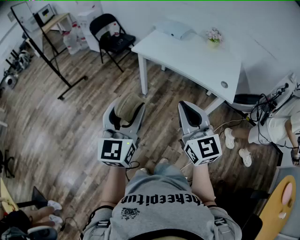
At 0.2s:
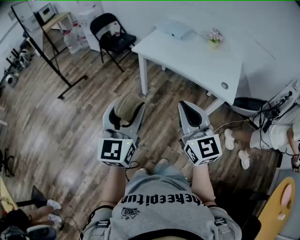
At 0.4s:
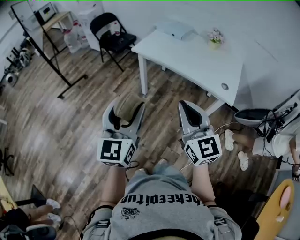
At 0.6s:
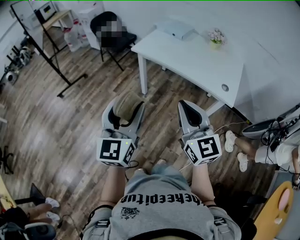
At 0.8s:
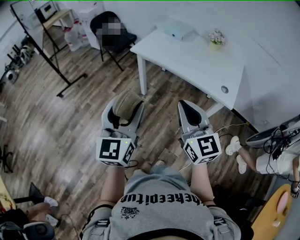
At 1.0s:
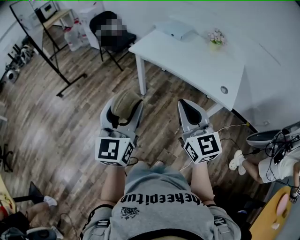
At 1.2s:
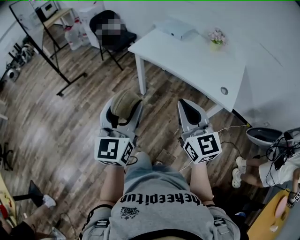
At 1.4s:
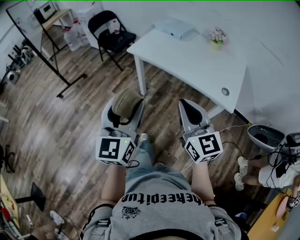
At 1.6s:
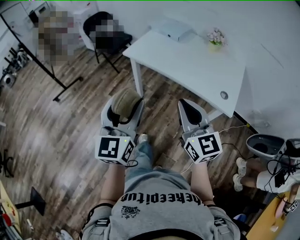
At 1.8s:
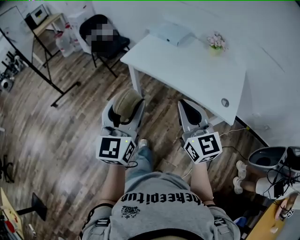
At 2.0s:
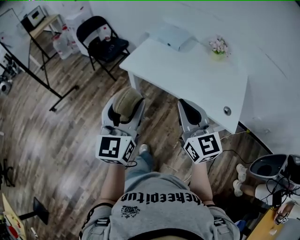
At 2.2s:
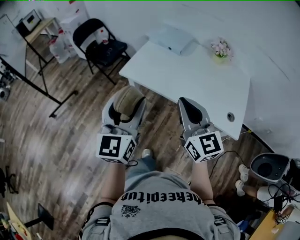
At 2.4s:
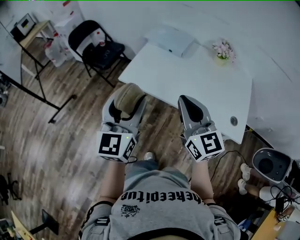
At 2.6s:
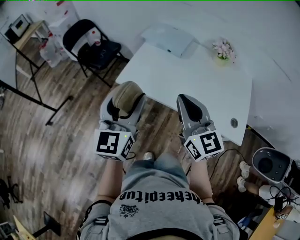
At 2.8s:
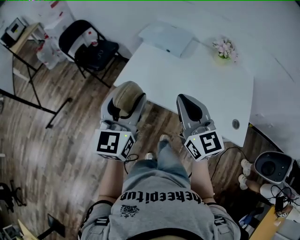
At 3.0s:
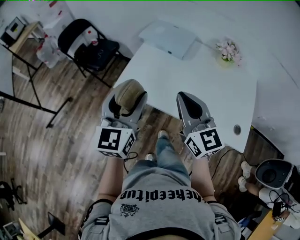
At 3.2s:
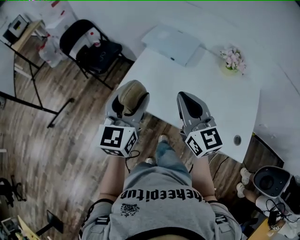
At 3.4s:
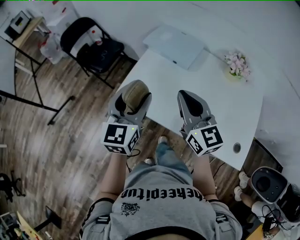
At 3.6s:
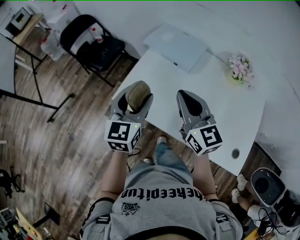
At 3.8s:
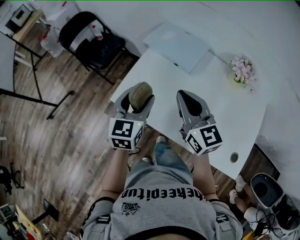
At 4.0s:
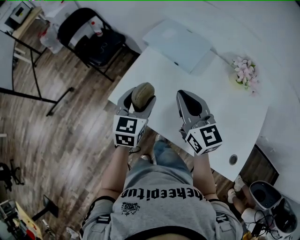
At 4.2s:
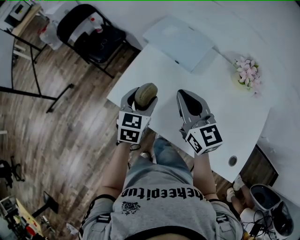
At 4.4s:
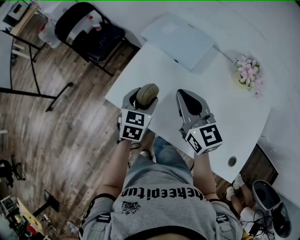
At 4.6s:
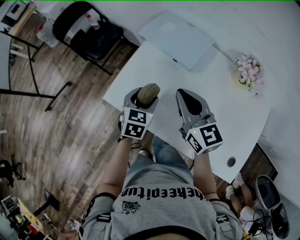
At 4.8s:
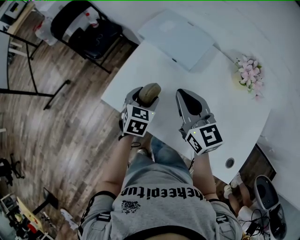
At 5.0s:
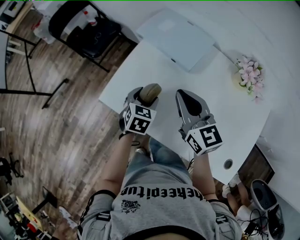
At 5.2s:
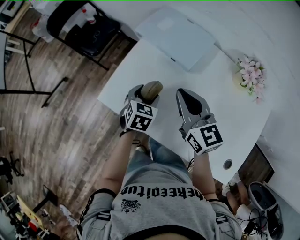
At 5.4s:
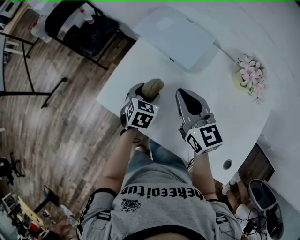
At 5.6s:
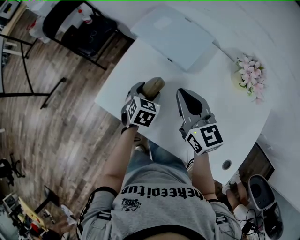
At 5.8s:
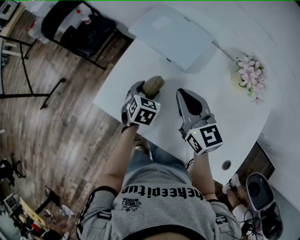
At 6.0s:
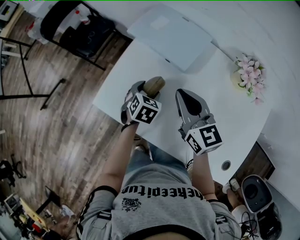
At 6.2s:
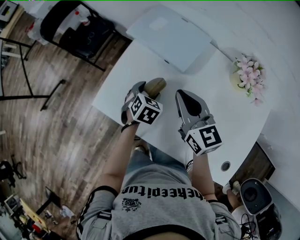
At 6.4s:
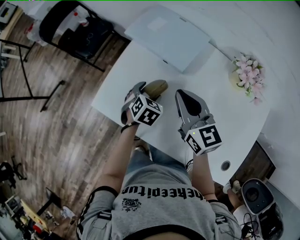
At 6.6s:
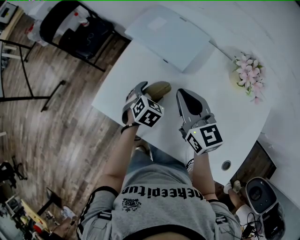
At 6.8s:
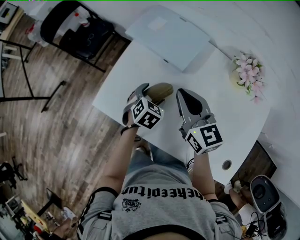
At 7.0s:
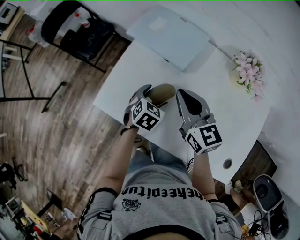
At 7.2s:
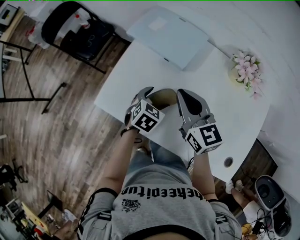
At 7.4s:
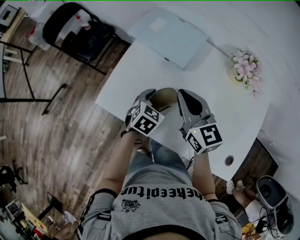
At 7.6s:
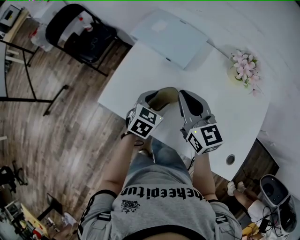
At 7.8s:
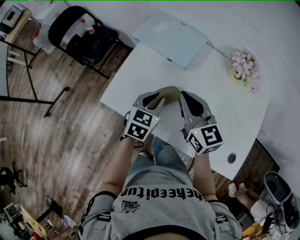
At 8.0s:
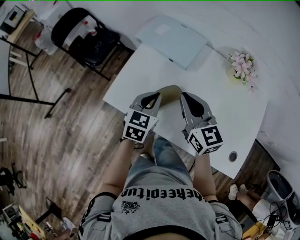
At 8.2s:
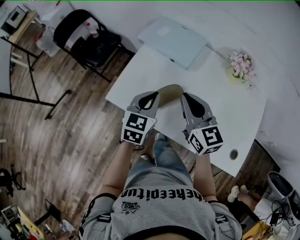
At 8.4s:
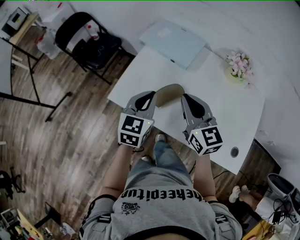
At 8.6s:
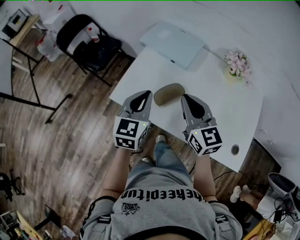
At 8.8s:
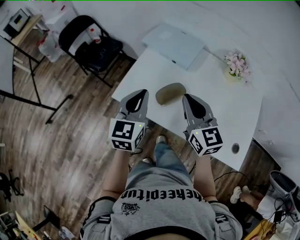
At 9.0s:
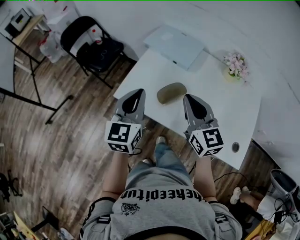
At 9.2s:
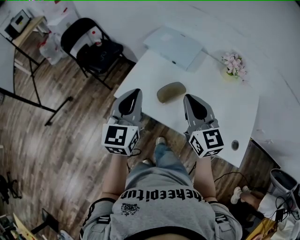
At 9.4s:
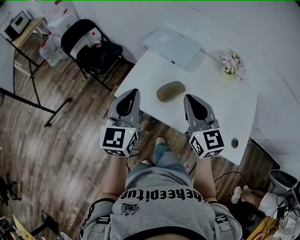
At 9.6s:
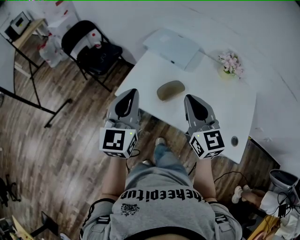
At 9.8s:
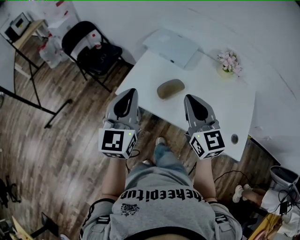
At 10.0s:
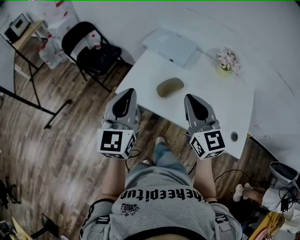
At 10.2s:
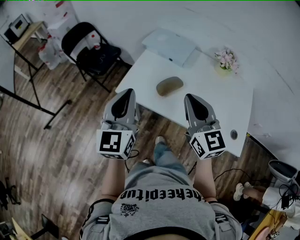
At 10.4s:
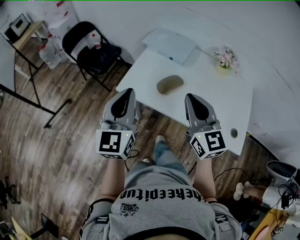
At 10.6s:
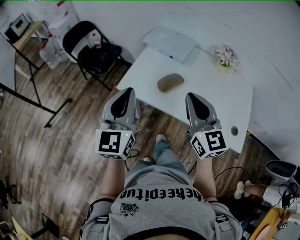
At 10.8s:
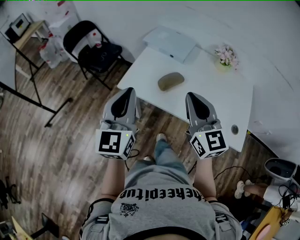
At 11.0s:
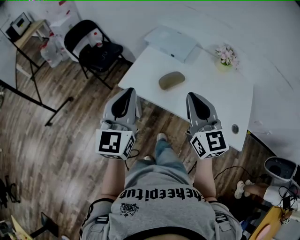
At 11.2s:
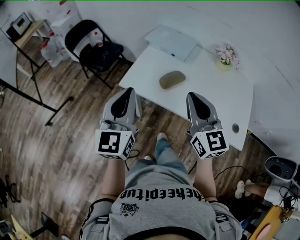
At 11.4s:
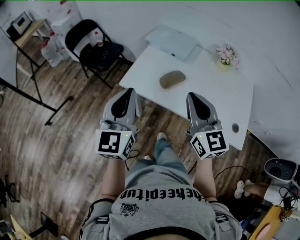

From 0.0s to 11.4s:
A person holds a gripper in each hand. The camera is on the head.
From 0.0s to 1.4s: Both grippers move forward and to the right, roughly 10 cm.
From 1.4s to 2.8s: The two grippers go about 35 cm forward.
From 2.8s to 4.2s: The right gripper heads forward, covering some 20 cm. The left gripper shifts approximately 30 cm forward, downward and to the right, and angles its fingers downward, by approximately 30 degrees.
From 4.2s to 5.6s: The left gripper shifts about 15 cm downward, to the right and forward; the right gripper moves approximately 10 cm.
From 5.6s to 7.2s: The left gripper moves to the right, roughly 5 cm.
From 7.2s to 8.6s: The right gripper shifts approximately 10 cm backward. Meanwhile the left gripper goes roughly 25 cm upward, to the left and backward, angles its fingers upward, by roughly 30 degrees, and closes.
From 8.6s to 10.0s: The right gripper shifts roughly 10 cm backward and upward. The left gripper shifts approximately 15 cm backward, upward and to the left.
From 10.0s to 11.4s: The two grippers go some 5 cm backward.

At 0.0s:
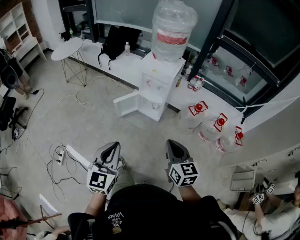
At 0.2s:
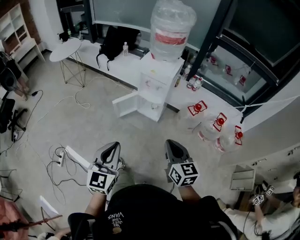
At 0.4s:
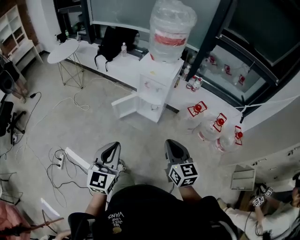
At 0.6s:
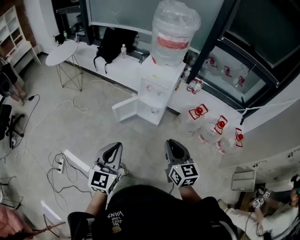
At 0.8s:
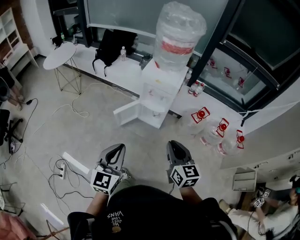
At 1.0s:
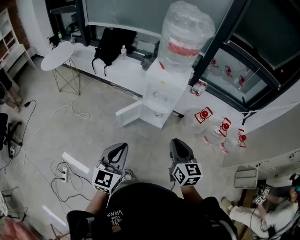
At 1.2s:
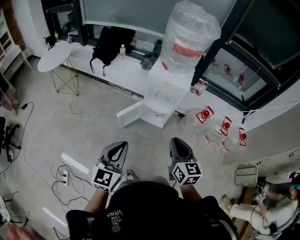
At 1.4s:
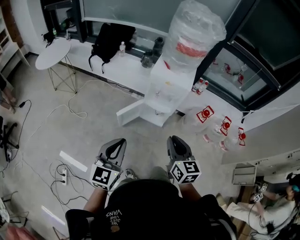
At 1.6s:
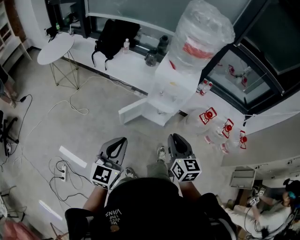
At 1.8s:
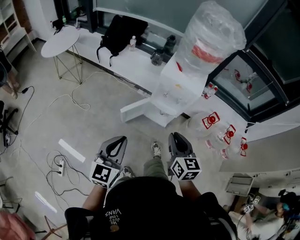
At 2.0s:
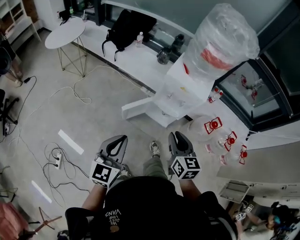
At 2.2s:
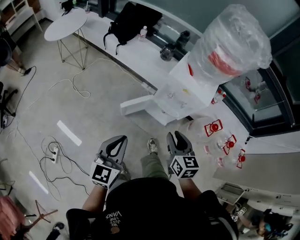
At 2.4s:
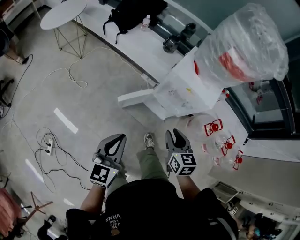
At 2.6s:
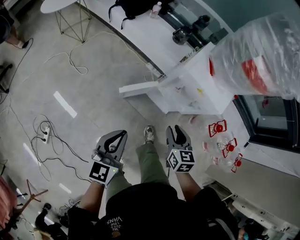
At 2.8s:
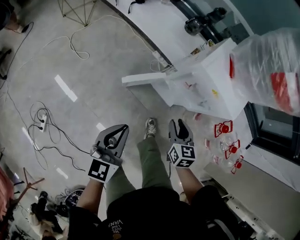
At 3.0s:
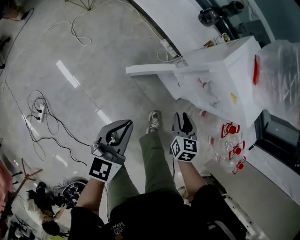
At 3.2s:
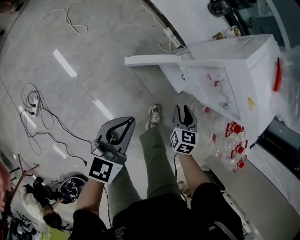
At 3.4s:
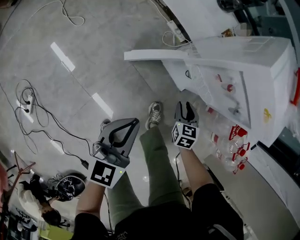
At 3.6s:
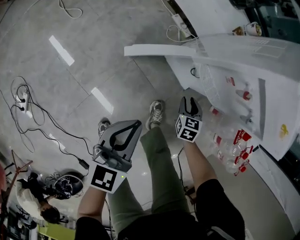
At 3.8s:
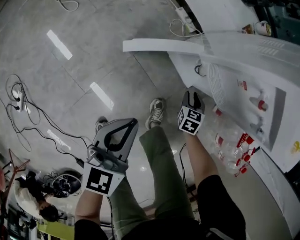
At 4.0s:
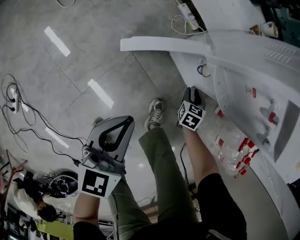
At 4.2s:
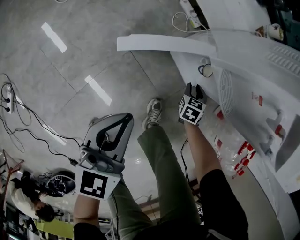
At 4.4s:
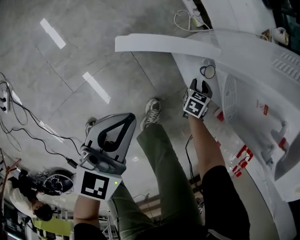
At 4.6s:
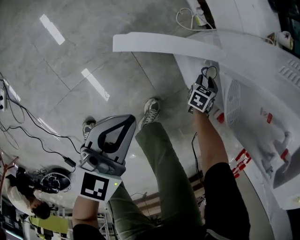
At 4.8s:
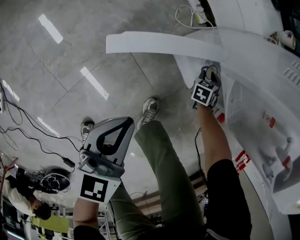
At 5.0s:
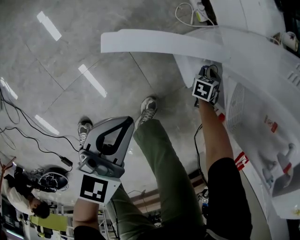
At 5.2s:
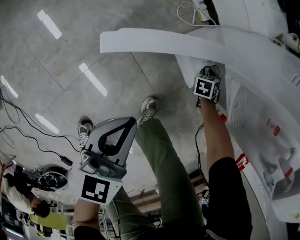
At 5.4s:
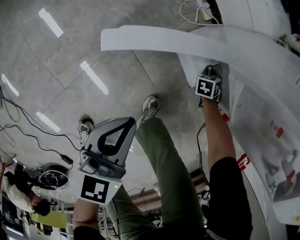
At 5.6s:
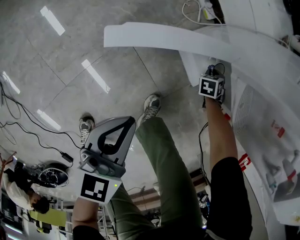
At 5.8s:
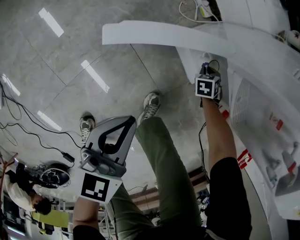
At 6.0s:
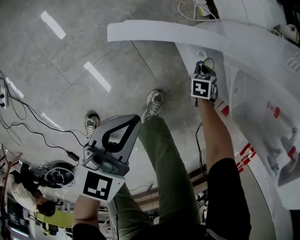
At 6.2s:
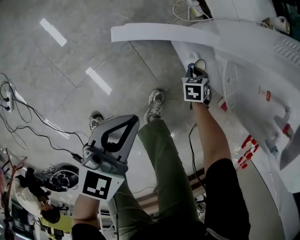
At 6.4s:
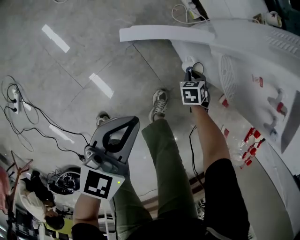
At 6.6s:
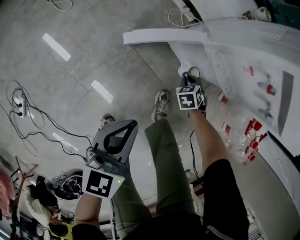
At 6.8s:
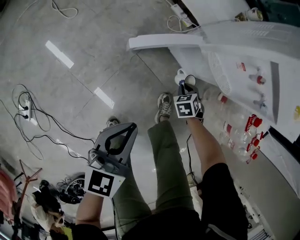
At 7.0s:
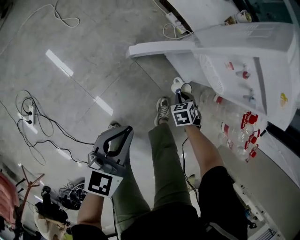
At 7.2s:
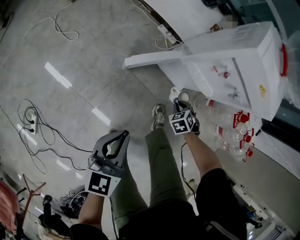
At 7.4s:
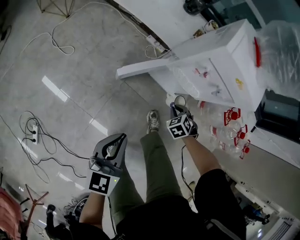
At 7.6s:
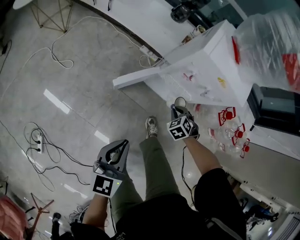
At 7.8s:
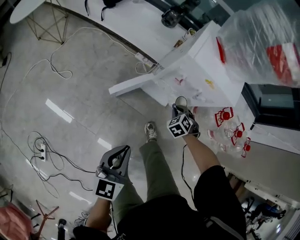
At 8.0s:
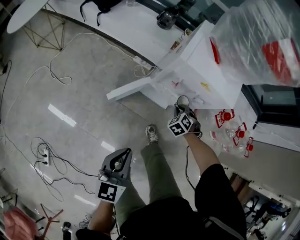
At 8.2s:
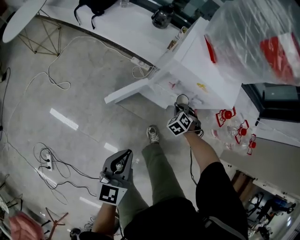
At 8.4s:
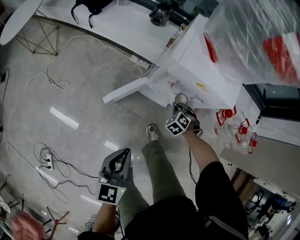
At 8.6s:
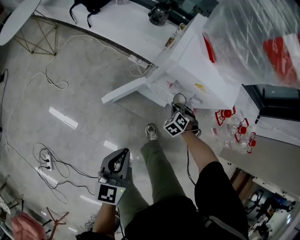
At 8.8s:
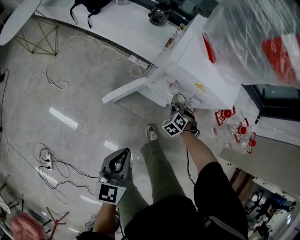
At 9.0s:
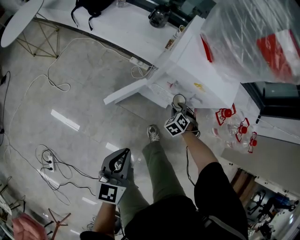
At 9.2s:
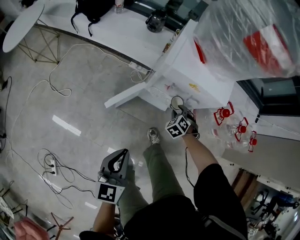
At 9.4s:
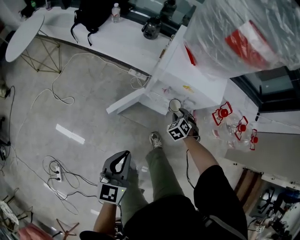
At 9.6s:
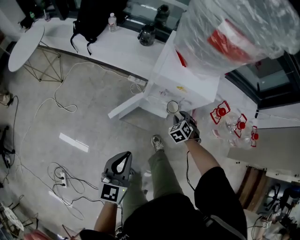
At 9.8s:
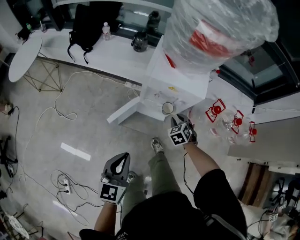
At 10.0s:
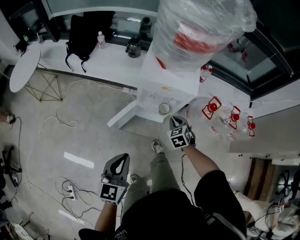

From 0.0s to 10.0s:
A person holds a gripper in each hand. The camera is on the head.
From 0.0s to 1.4s: Both grippers travel together forward and to the left, about 25 cm.
From 1.4s to 2.8s: The left gripper goes approximately 30 cm forward and downward, and swivels some 20 degrees. Meanwhile the right gripper shifts roughly 40 cm downward and forward, and turns by approximately 30 degrees.
From 2.8s to 4.2s: The grippers both shift downward by roughly 40 cm. The right gripper swivels some 30 degrees.
From 4.2s to 5.8s: The left gripper is displaced downward by roughly 10 cm. Meanwhile the right gripper heads downward and forward, covering roughly 15 cm, and turns by approximately 30 degrees.
From 5.8s to 7.2s: Both grippers travel together upward, about 30 cm.
From 7.2s to 8.6s: The left gripper moves upward, forward and to the right, some 15 cm. The right gripper shifts about 20 cm forward, upward and to the right.
From 8.6s to 10.0s: The left gripper moves upward, approximately 15 cm. The right gripper shifts about 20 cm upward, and changes its angle by about 40 degrees.

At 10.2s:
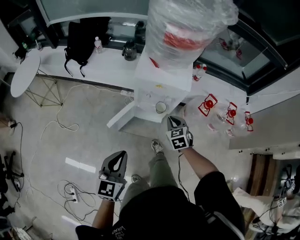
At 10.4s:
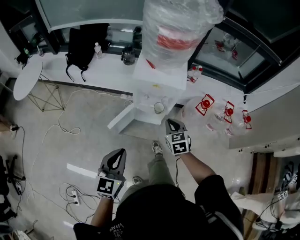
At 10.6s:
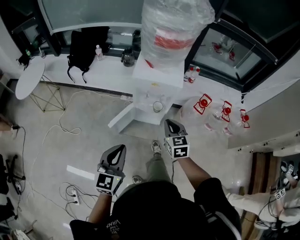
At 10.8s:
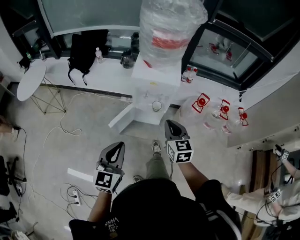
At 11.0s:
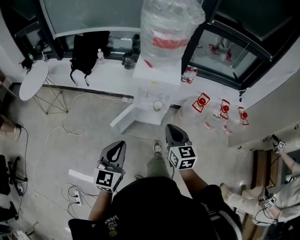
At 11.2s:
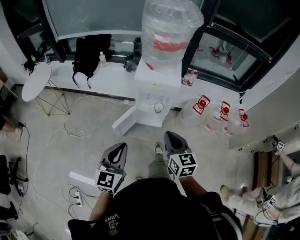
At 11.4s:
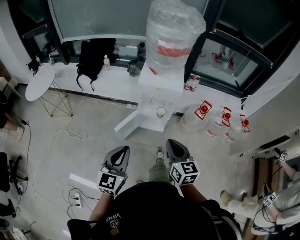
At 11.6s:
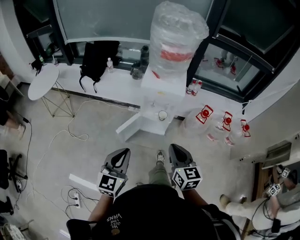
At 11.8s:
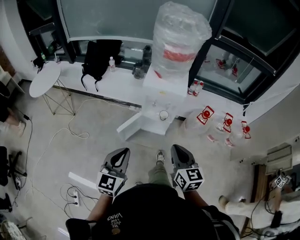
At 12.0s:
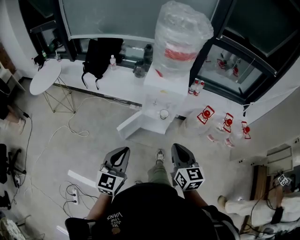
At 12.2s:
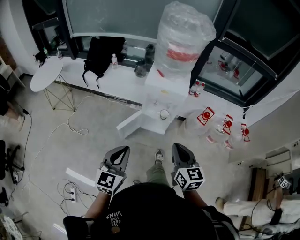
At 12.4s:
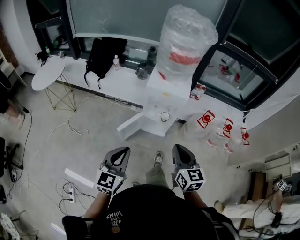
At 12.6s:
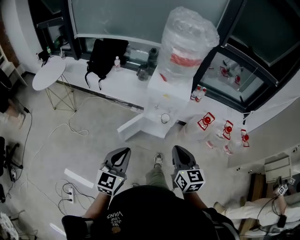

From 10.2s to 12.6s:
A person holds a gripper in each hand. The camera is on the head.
From 10.2s to 11.4s: The left gripper is displaced backward and upward by some 15 cm; the right gripper is displaced backward and upward by about 30 cm, and turns by about 40 degrees.
From 11.4s to 12.6s: The grippers stay close to where they were, moving slightly.
